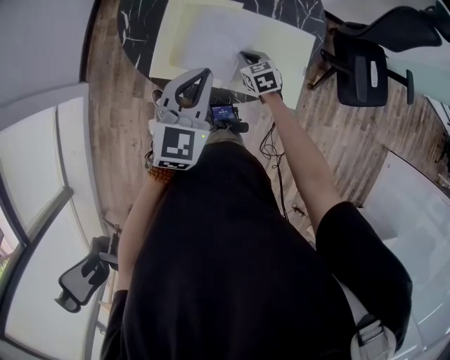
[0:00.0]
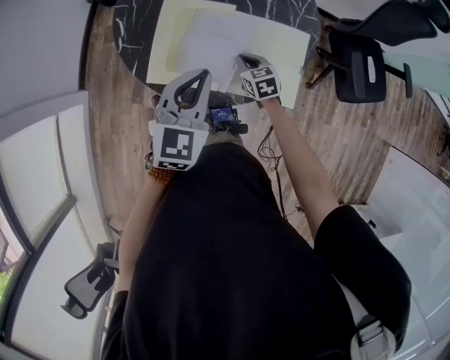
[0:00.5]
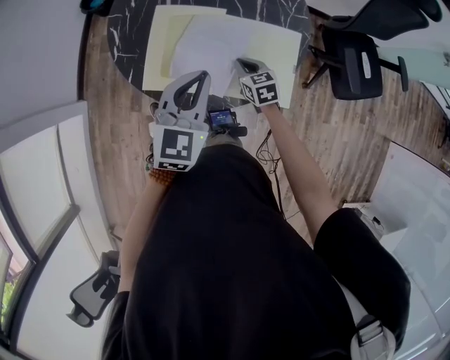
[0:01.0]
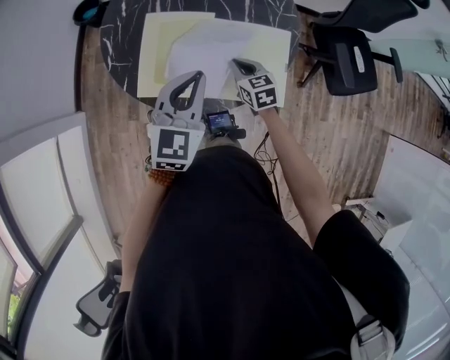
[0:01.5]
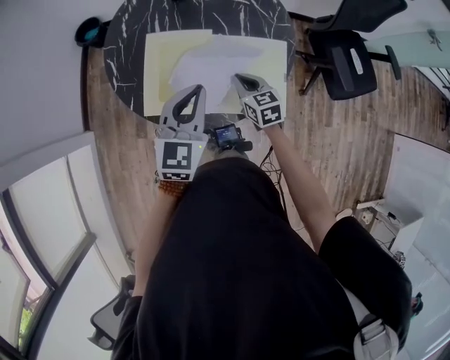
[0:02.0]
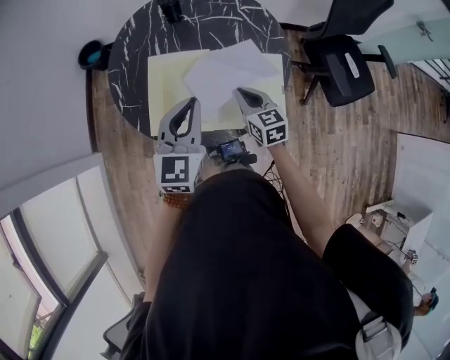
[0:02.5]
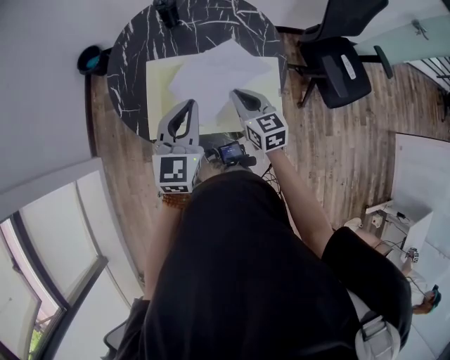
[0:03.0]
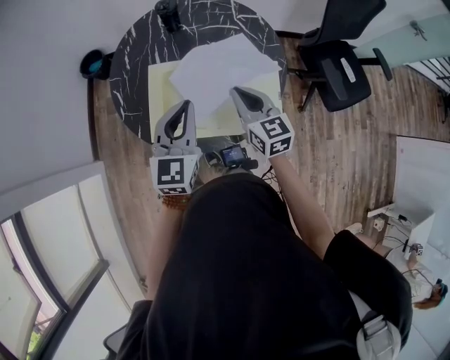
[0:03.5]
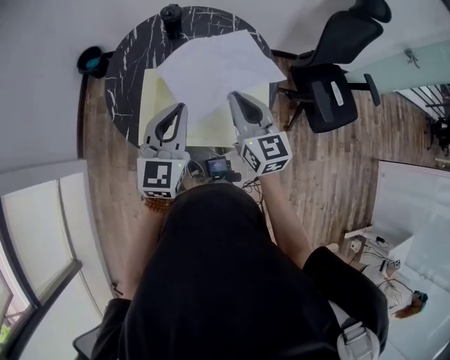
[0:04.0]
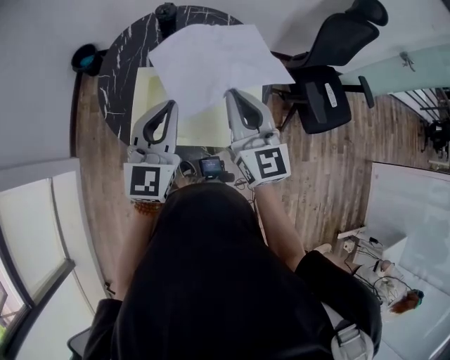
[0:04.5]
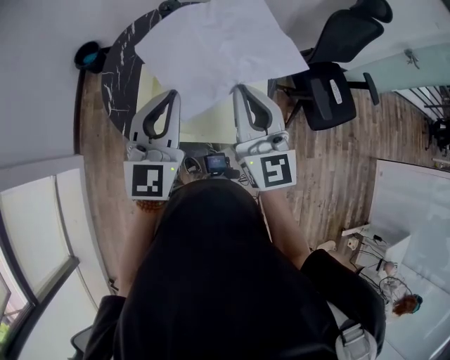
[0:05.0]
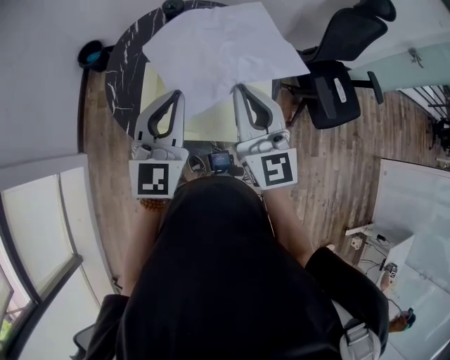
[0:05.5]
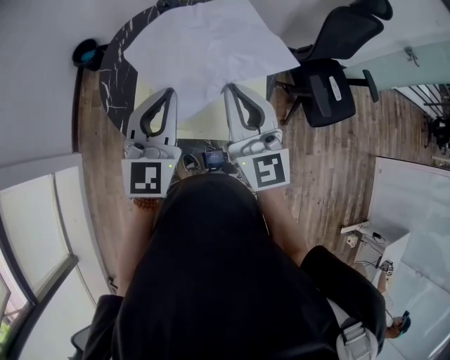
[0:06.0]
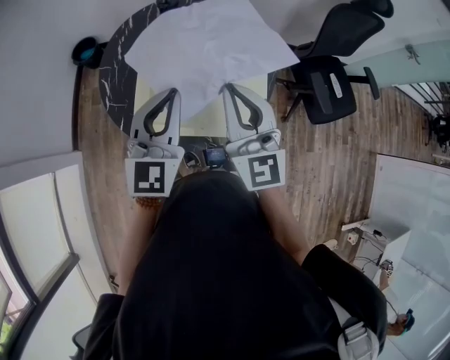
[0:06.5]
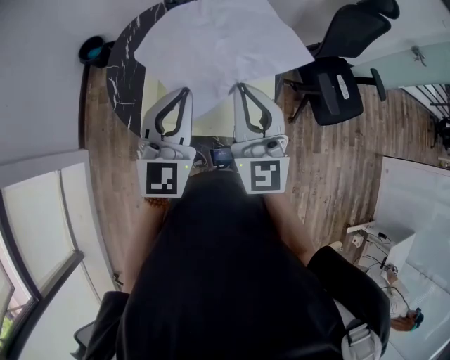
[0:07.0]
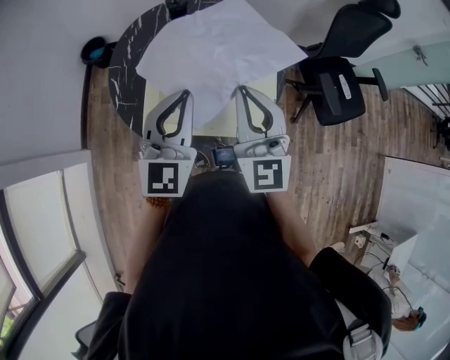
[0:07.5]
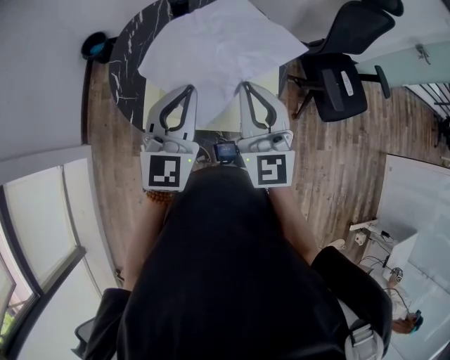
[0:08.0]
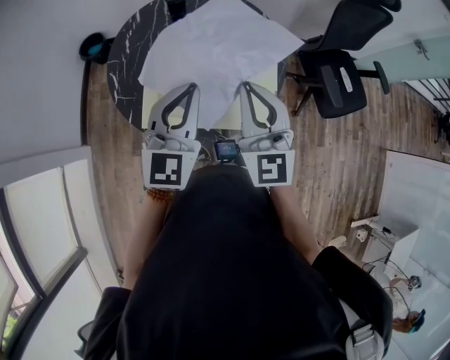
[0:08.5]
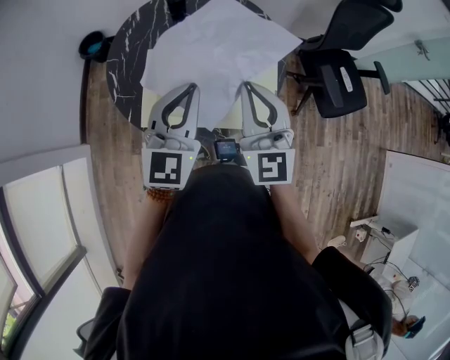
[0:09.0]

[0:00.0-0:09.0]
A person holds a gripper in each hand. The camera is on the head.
0:00.0 to 0:02.0: The right gripper moves upward, approximately 10 cm.
0:02.0 to 0:04.5: The left gripper heads upward, covering roughly 10 cm. Meanwhile the right gripper shifts some 30 cm upward, and points its fingers approximately 40 degrees further upward.
0:04.5 to 0:09.0: There are only small adjustments of the grippers.

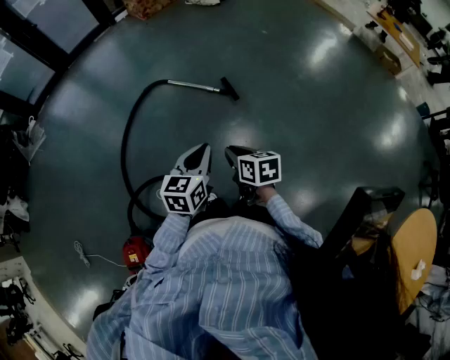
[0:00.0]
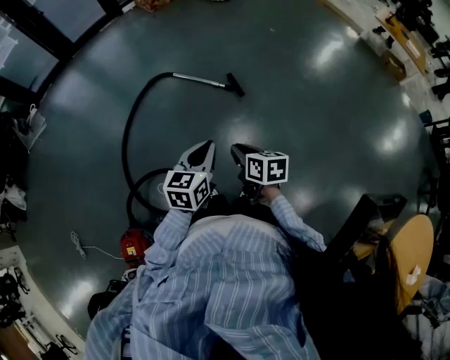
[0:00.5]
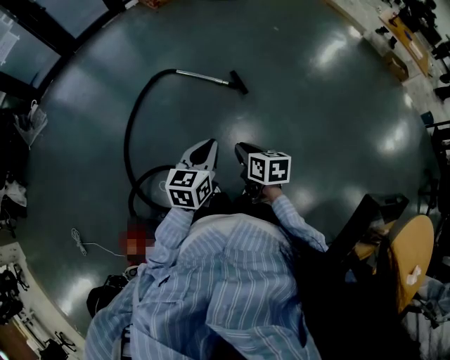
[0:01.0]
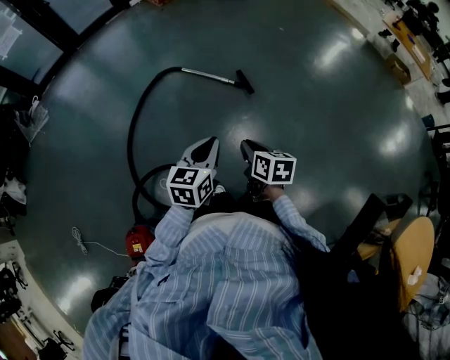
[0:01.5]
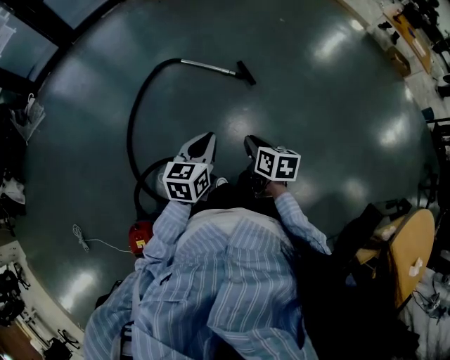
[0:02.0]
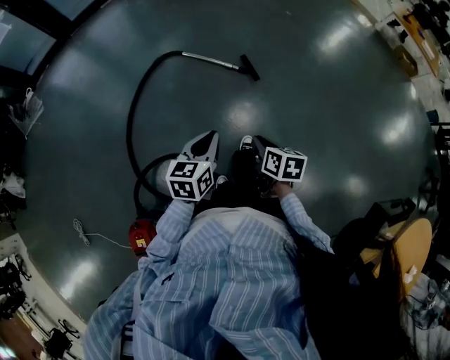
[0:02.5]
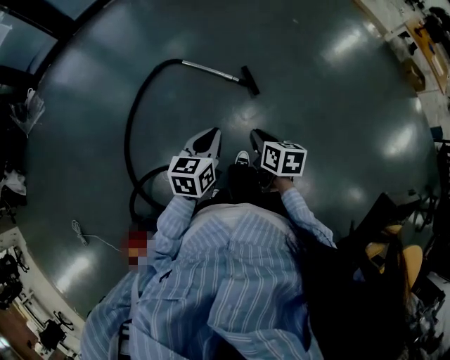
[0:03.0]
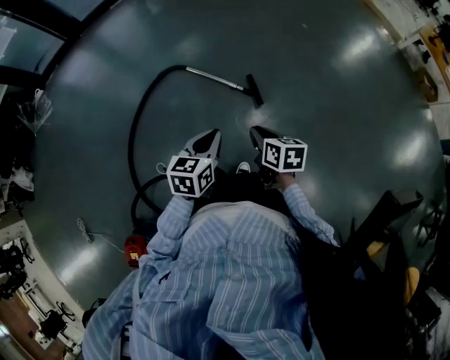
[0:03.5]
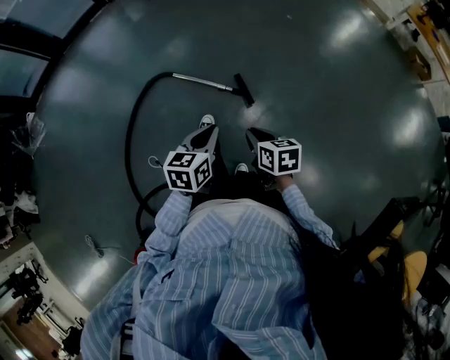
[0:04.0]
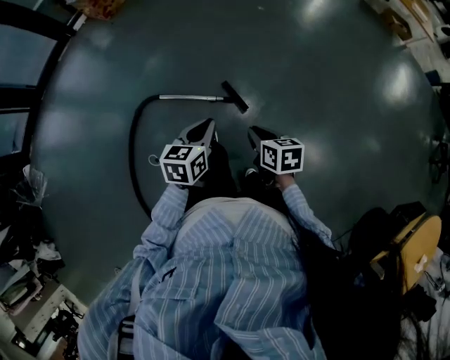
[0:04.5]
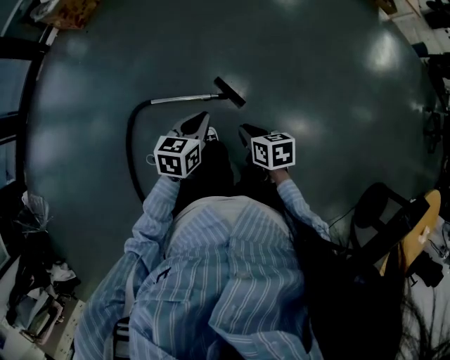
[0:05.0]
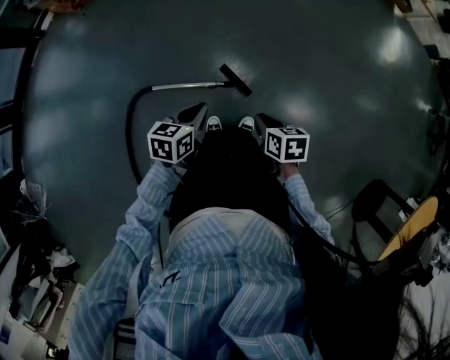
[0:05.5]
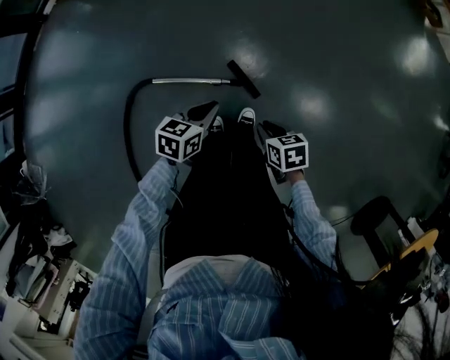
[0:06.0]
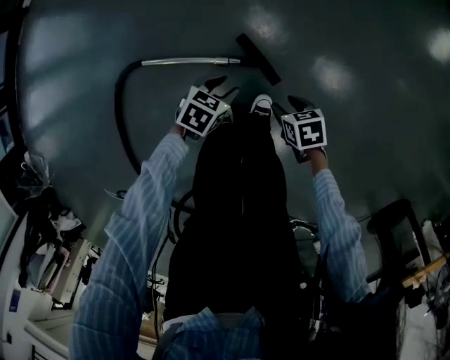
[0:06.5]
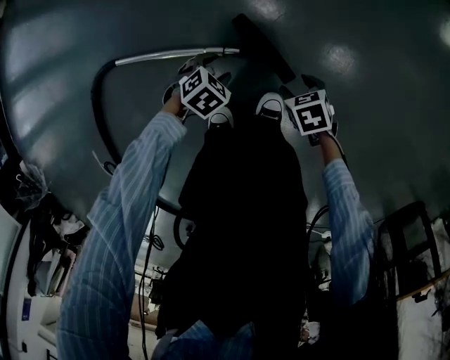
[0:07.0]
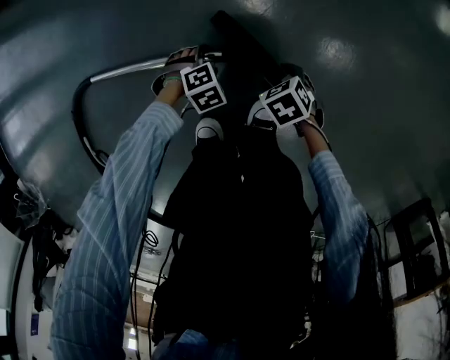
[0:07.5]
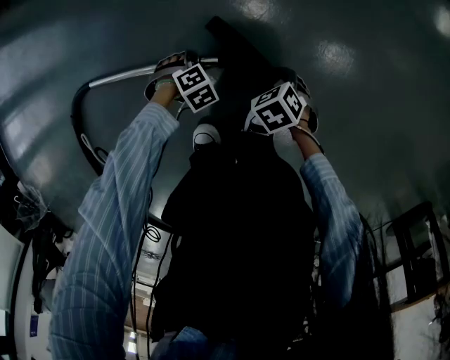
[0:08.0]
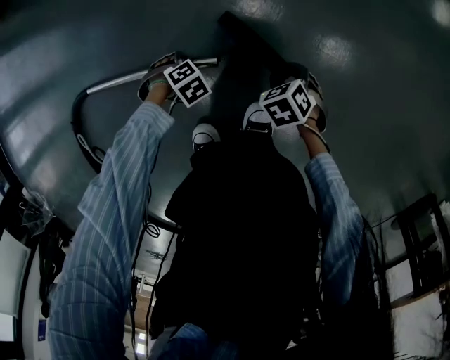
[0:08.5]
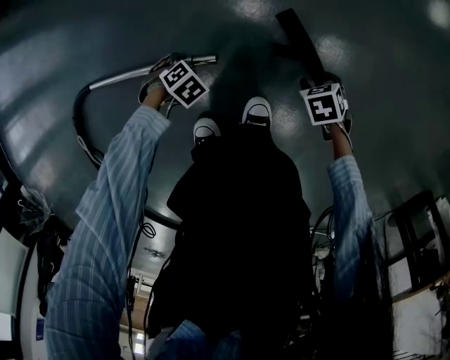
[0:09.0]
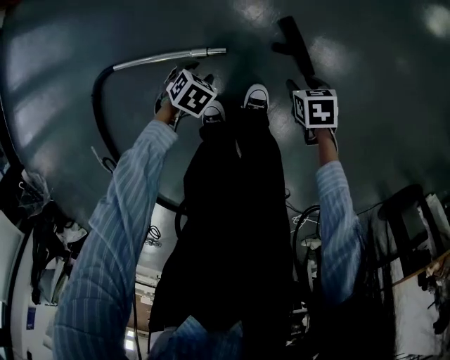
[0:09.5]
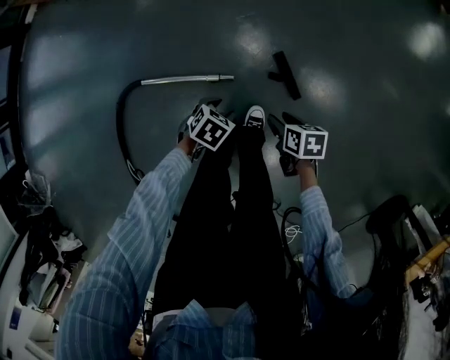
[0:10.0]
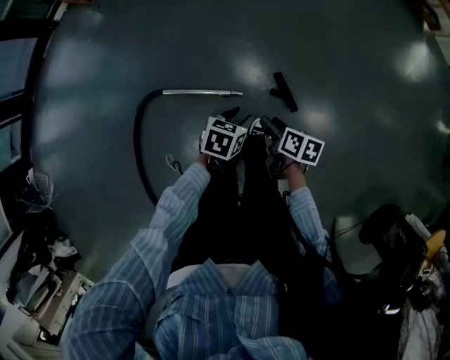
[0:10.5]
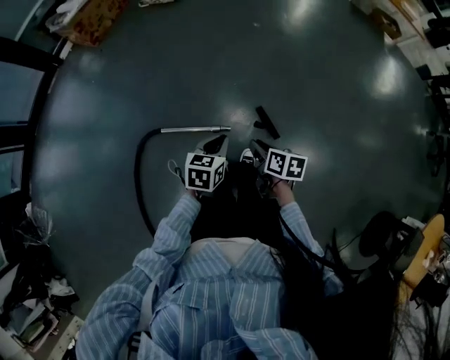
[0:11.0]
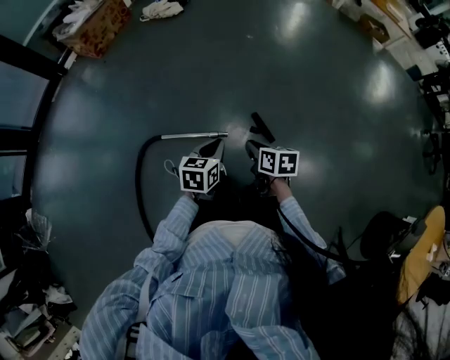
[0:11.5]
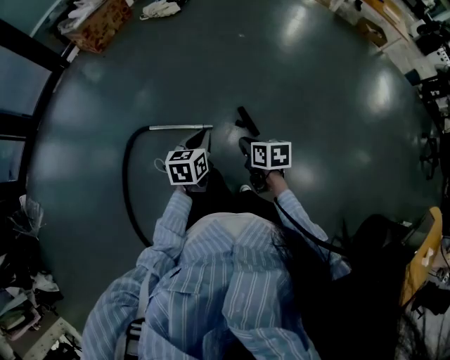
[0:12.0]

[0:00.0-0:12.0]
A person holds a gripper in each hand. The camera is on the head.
0:00.0 to 0:02.0: The right gripper moves roughly 5 cm. Meanwhile the left gripper travels to the left by some 10 cm.
0:02.0 to 0:04.0: Both grippers move forward and to the right, about 30 cm.
0:04.0 to 0:06.0: The left gripper ends up approximately 35 cm from where it was, and rotates some 30 degrees; the right gripper ends up some 30 cm from where it was.
0:06.0 to 0:08.0: The left gripper heads downward, covering about 5 cm, rolls clockwise, seen from behind, by roughly 60 degrees, and opens its fingers. Meanwhile the right gripper goes approximately 10 cm upward, rotates about 40 degrees, and opens its fingers.
0:08.0 to 0:10.0: The left gripper ends up approximately 5 cm from where it was, and turns by some 40 degrees, while the right gripper goes some 5 cm downward, and rotates around the line of its fingers by roughly 40 degrees, clockwise from behind.
0:10.0 to 0:12.0: Both grippers travel together upward, about 40 cm. The left gripper tilts its fingers some 30 degrees upward, and closes up. Meanwhile the right gripper changes its angle by approximately 20 degrees, and closes.

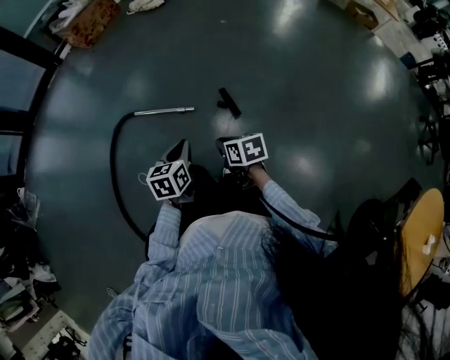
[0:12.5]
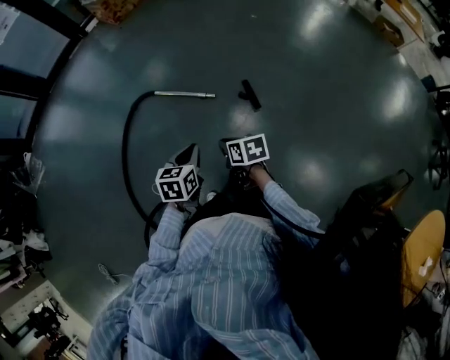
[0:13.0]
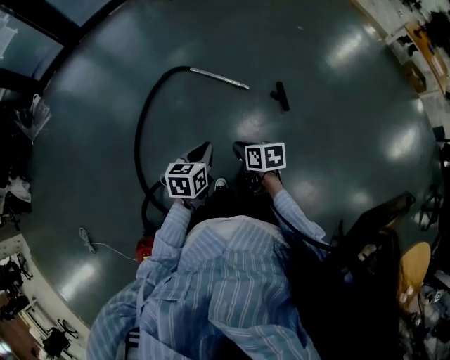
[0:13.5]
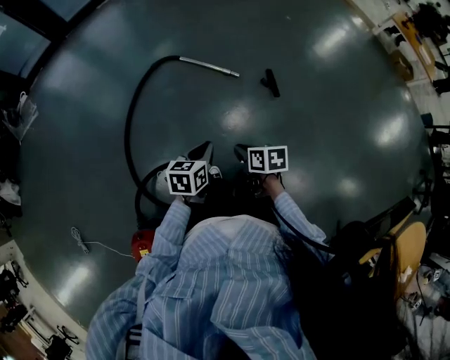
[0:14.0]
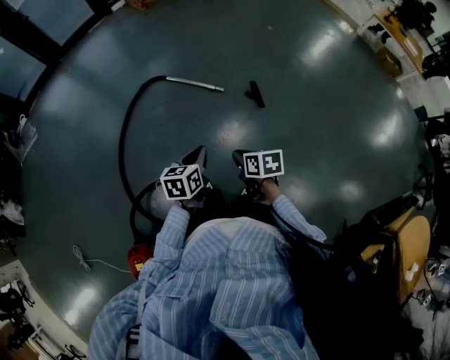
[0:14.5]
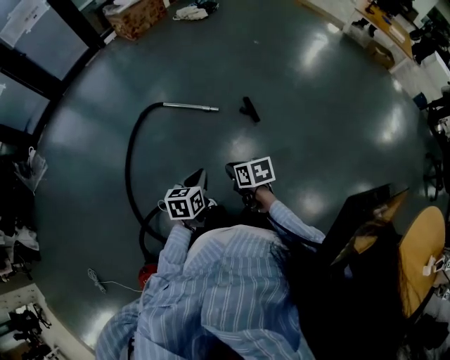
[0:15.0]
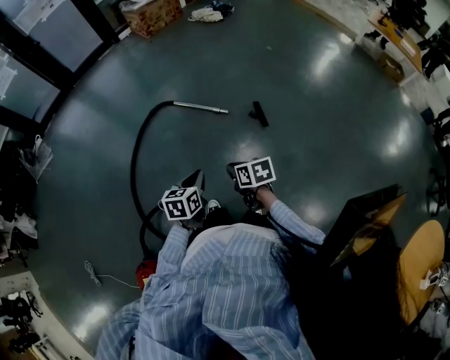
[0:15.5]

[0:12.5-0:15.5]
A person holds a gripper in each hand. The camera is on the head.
0:12.5 to 0:14.0: The grippers both shift to the left and backward by approximately 30 cm.
0:14.0 to 0:15.5: Both grippers travel together to the right, roughly 5 cm.

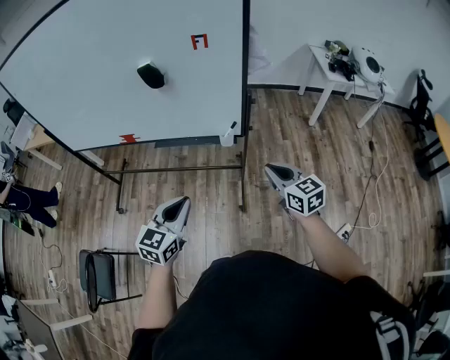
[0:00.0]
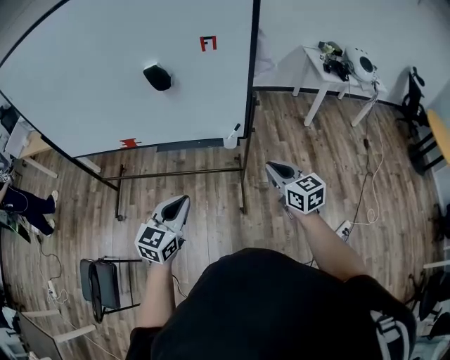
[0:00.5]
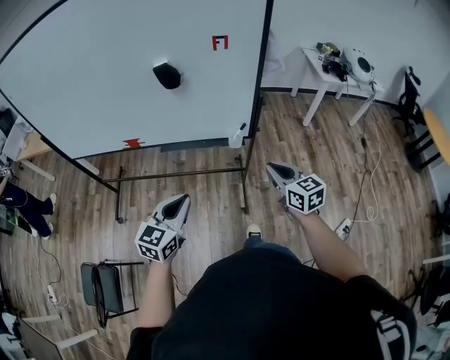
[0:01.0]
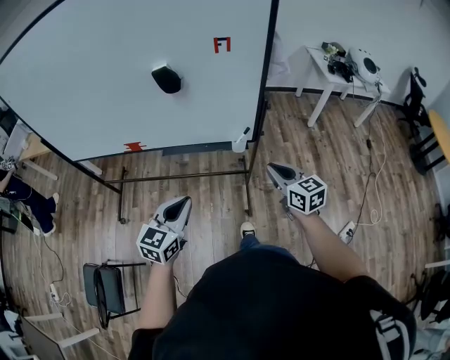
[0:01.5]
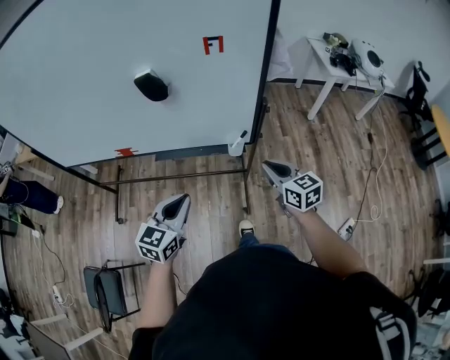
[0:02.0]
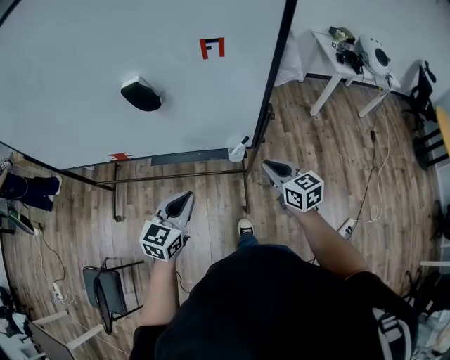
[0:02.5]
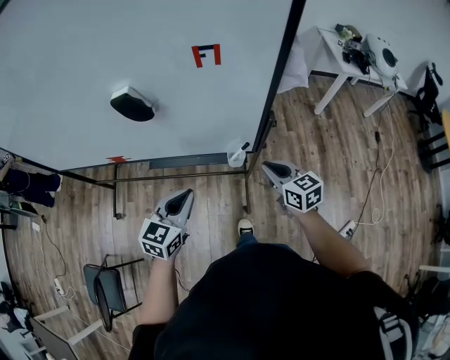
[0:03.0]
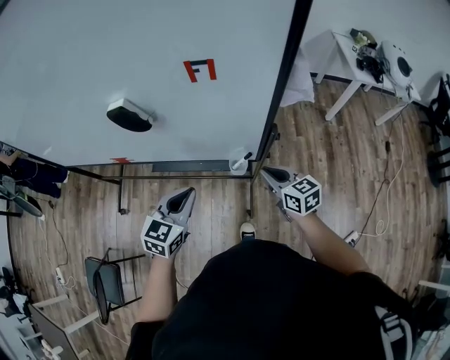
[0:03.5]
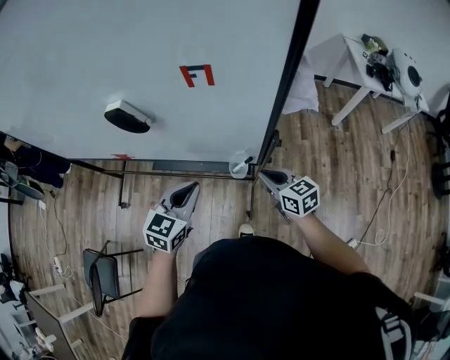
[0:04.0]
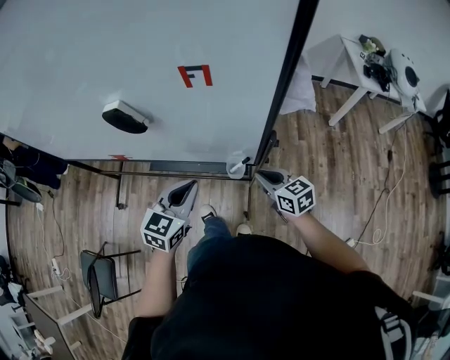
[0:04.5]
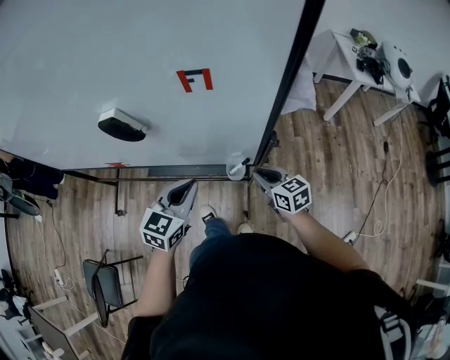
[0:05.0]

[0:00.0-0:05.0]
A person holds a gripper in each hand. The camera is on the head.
0:00.0 to 0:02.5: The grippers both shift forward by about 15 cm.
0:02.5 to 0:05.0: The left gripper goes some 15 cm forward and to the right. The right gripper travels forward and downward by approximately 15 cm.
